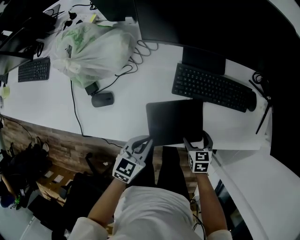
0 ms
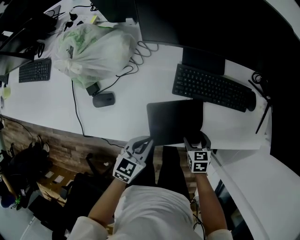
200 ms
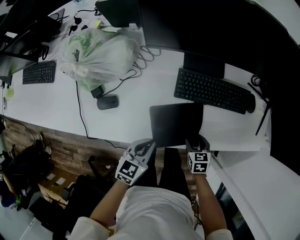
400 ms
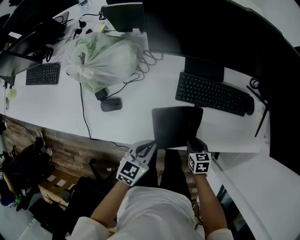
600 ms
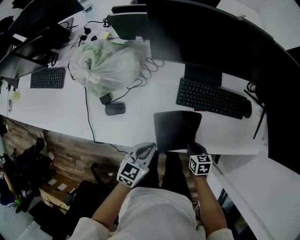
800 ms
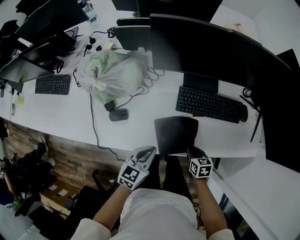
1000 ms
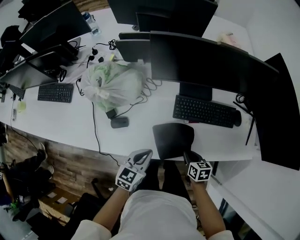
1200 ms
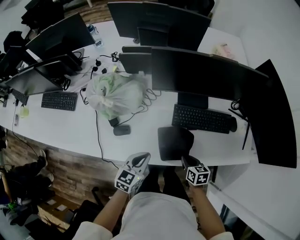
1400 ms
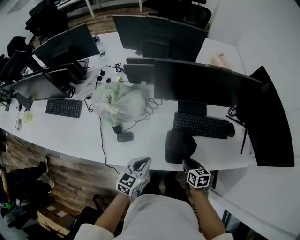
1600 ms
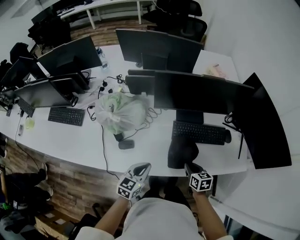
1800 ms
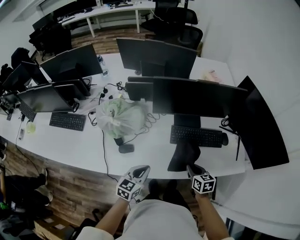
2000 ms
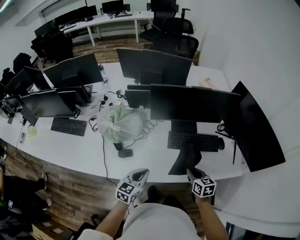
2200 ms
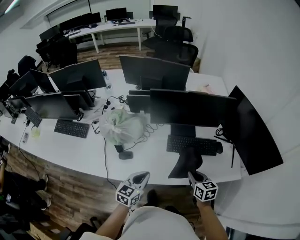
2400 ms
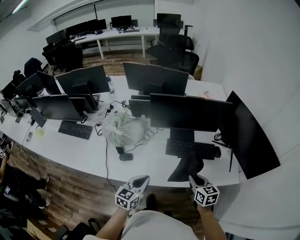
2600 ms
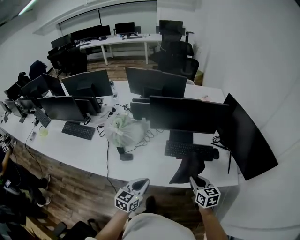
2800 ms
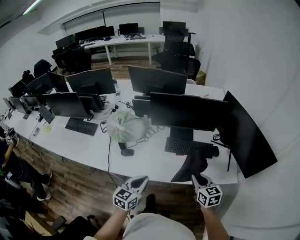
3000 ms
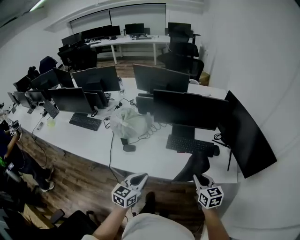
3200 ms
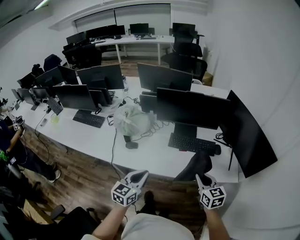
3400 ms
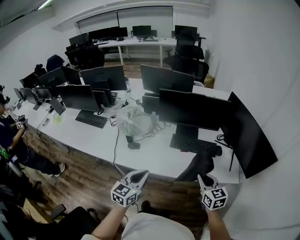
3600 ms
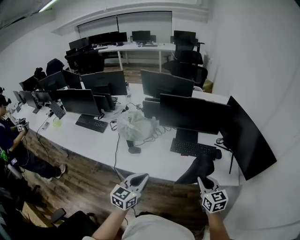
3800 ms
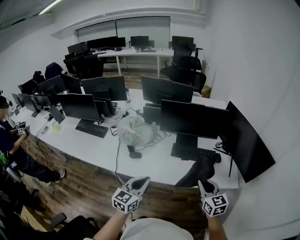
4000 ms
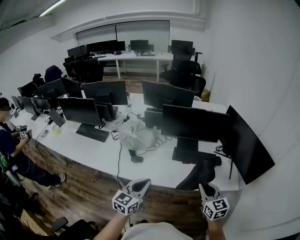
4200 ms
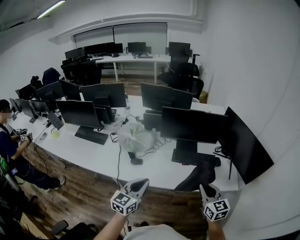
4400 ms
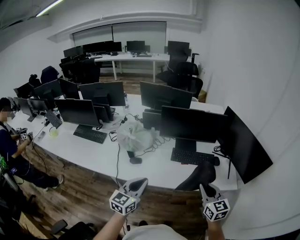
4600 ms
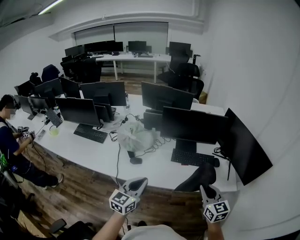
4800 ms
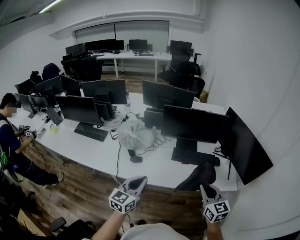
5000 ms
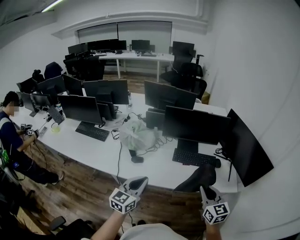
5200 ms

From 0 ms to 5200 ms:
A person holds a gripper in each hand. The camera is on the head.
From 0 ms to 1800 ms: The right gripper moves upward, about 20 cm, changes its angle by some 20 degrees, and closes its fingers; the left gripper is displaced upward and to the left by some 15 cm.
From 1800 ms to 3400 ms: The right gripper goes some 30 cm upward, backward and to the right, and changes its angle by roughly 30 degrees. Meanwhile the left gripper is displaced backward, upward and to the right by roughly 25 cm.
From 3400 ms to 5200 ms: The left gripper goes some 10 cm to the left and upward. The right gripper travels upward, to the left and backward by approximately 10 cm.

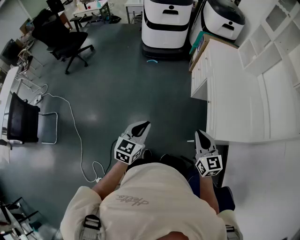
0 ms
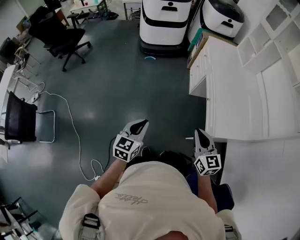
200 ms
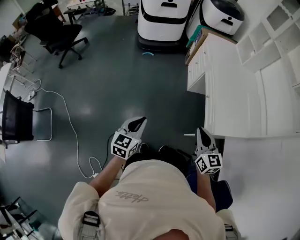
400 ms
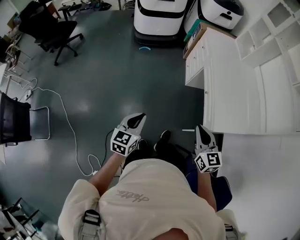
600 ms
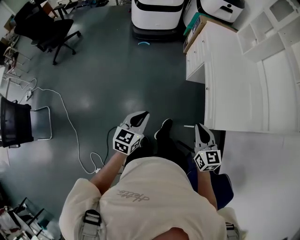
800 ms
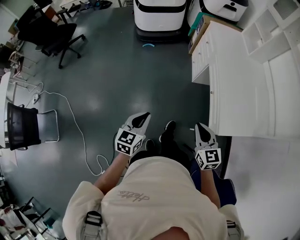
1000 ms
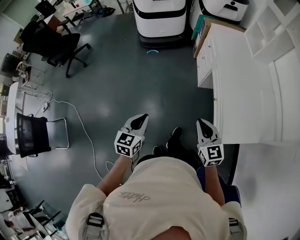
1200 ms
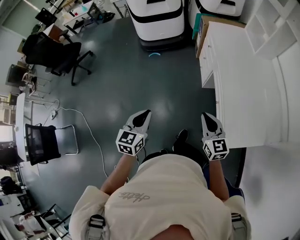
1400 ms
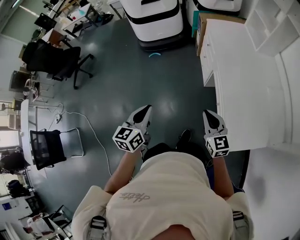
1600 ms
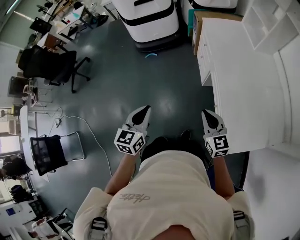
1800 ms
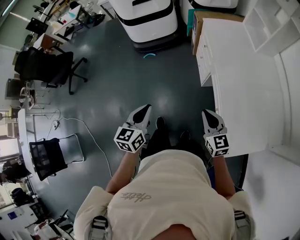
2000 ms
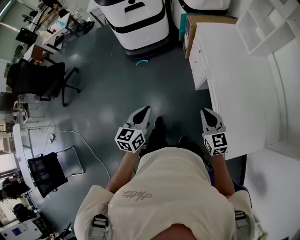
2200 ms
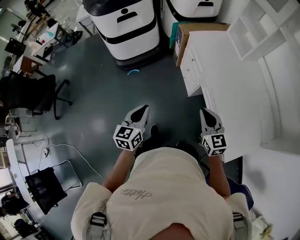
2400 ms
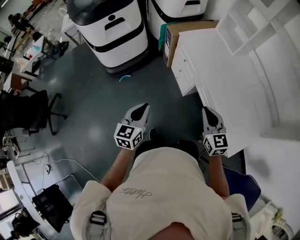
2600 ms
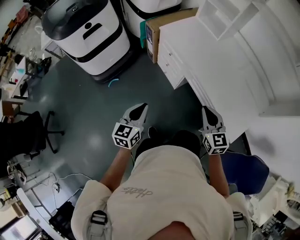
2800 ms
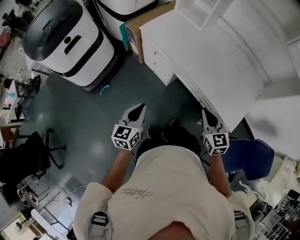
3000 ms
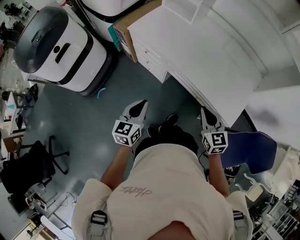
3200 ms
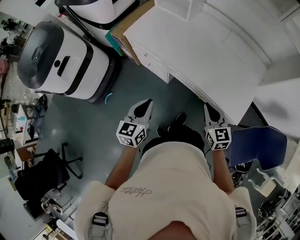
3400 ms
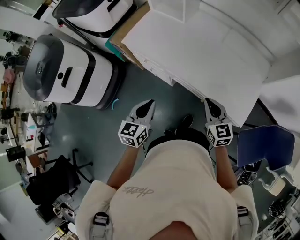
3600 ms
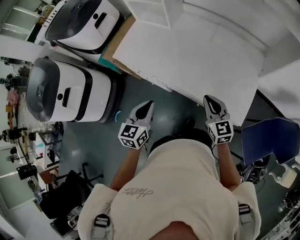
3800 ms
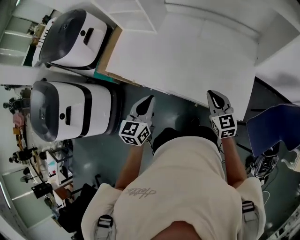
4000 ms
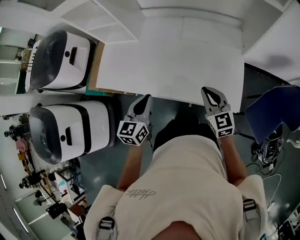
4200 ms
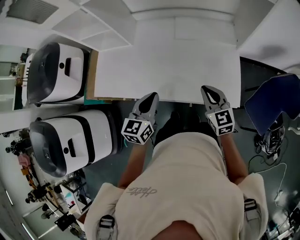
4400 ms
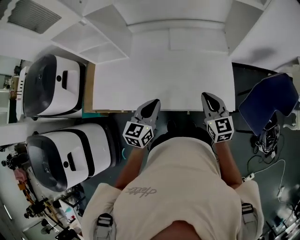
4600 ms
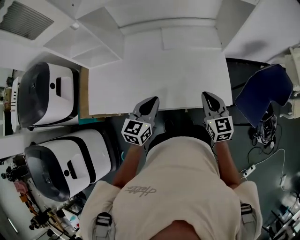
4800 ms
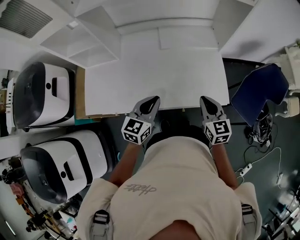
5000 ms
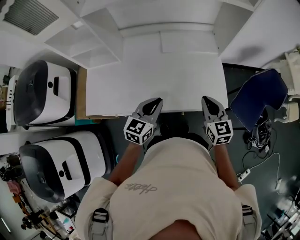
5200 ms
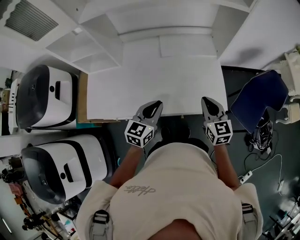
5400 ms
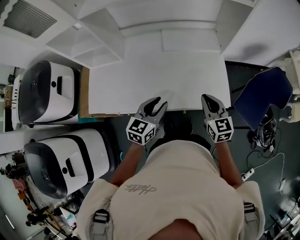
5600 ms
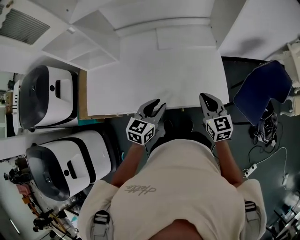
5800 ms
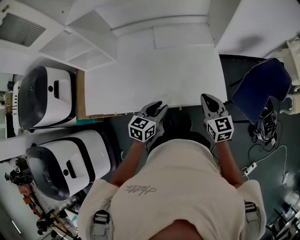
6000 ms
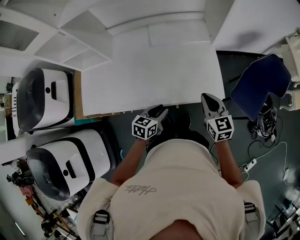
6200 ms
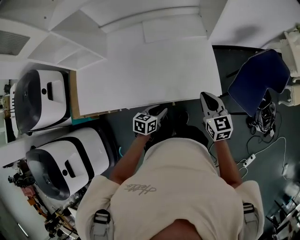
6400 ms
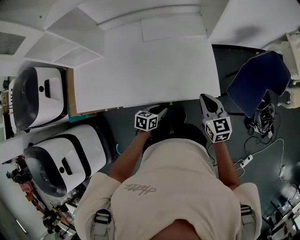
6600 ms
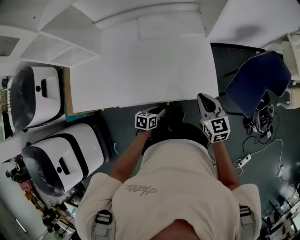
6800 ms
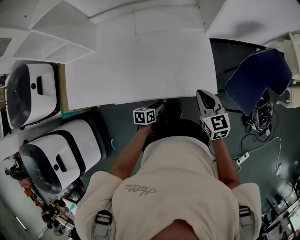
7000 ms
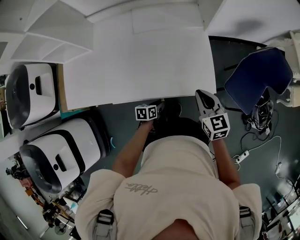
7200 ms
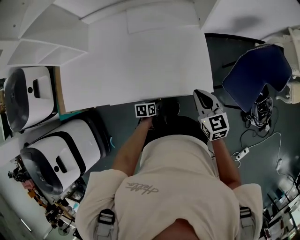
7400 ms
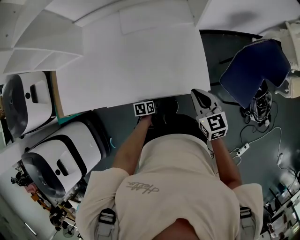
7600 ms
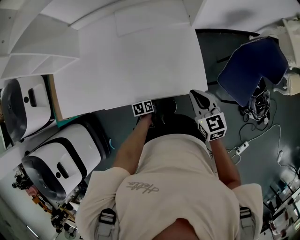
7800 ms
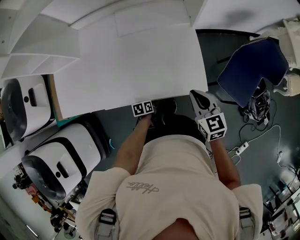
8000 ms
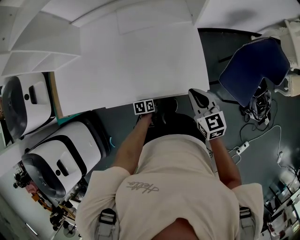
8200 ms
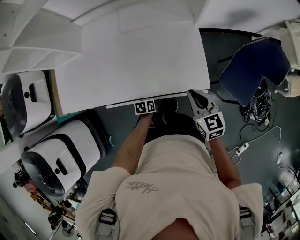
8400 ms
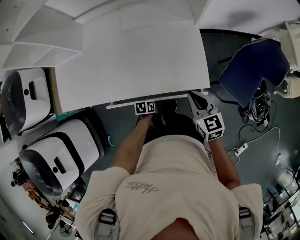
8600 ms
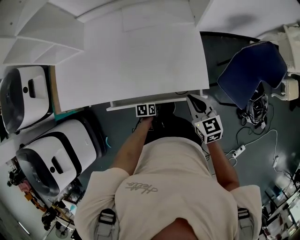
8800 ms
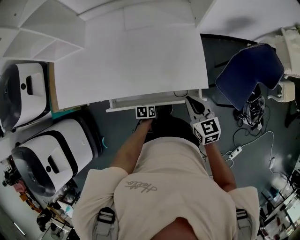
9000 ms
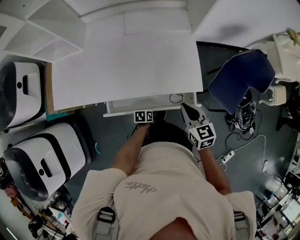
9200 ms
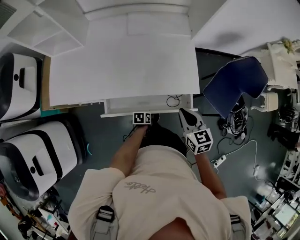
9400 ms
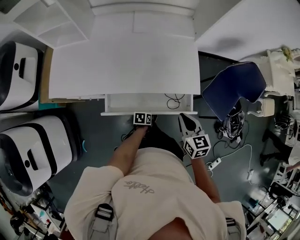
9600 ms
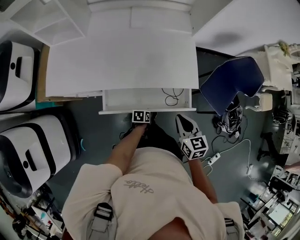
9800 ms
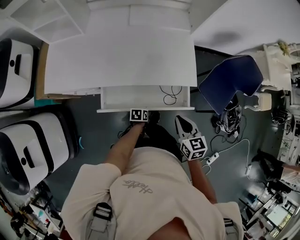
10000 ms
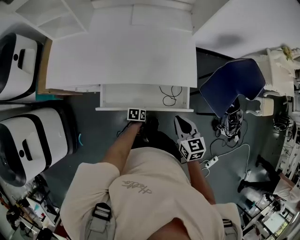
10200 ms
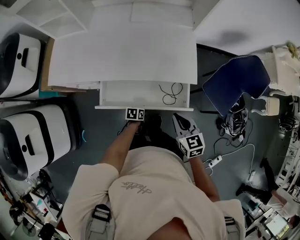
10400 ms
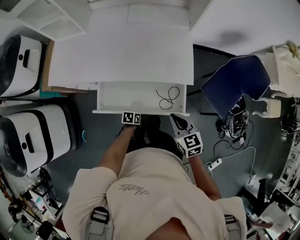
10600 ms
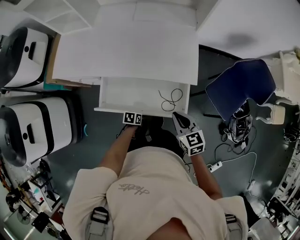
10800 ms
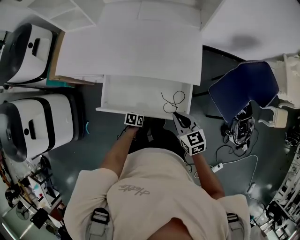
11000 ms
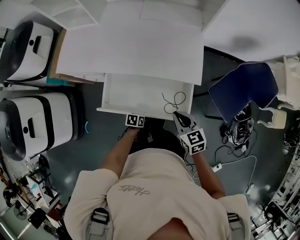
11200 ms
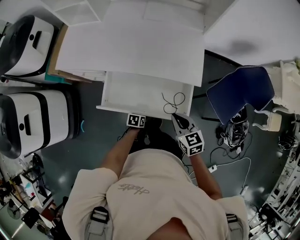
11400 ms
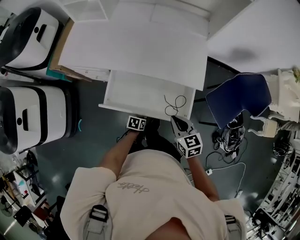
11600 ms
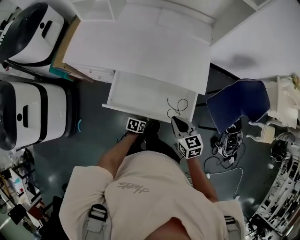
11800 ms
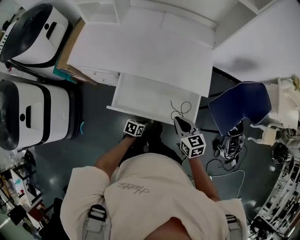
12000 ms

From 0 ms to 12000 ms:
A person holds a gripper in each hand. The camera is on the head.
From 0 ms to 1600 ms: Both grippers travel together forward, roughly 30 cm.
From 1600 ms to 3000 ms: The left gripper changes place by approximately 25 cm, and rotates roughly 40 degrees. The right gripper changes its angle by some 40 degrees.
From 3000 ms to 4400 ms: The left gripper moves some 35 cm, and swivels about 40 degrees. The right gripper moves approximately 25 cm, and turns by some 30 degrees.
From 4400 ms to 6000 ms: The left gripper moves downward and to the right, about 10 cm, swivels approximately 30 degrees, and opens up, while the right gripper travels to the right by roughly 5 cm.
From 6000 ms to 7600 ms: The left gripper shifts approximately 30 cm downward, and turns by about 40 degrees. The right gripper shifts approximately 10 cm to the right and downward.
From 7600 ms to 9000 ms: The grippers both shift backward by roughly 5 cm.
From 9000 ms to 10400 ms: The left gripper moves backward, some 10 cm, while the right gripper heads backward, covering some 15 cm.
From 10400 ms to 12000 ms: The left gripper moves backward and upward, about 10 cm. Meanwhile the right gripper changes place by approximately 5 cm.

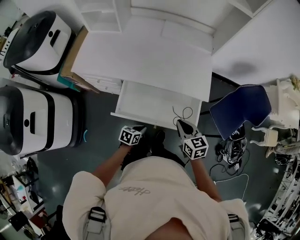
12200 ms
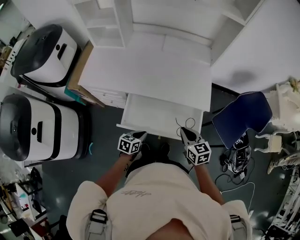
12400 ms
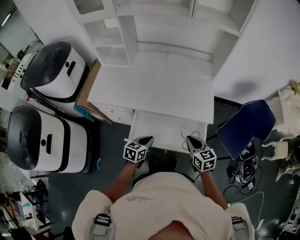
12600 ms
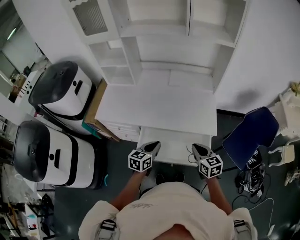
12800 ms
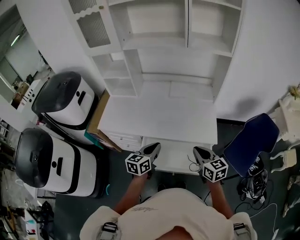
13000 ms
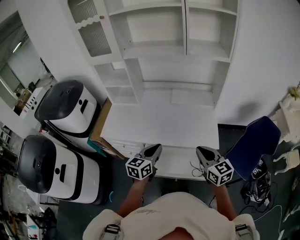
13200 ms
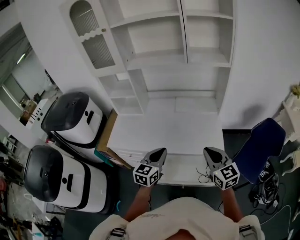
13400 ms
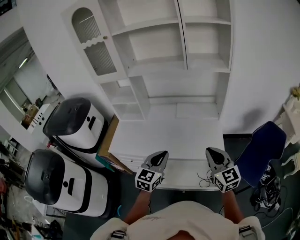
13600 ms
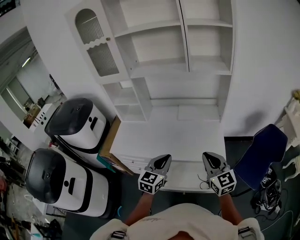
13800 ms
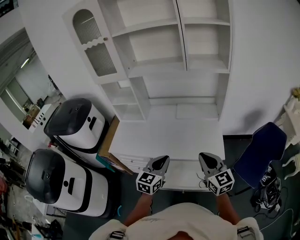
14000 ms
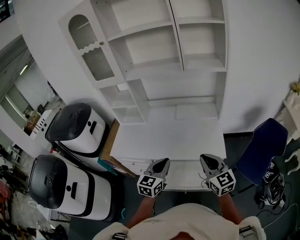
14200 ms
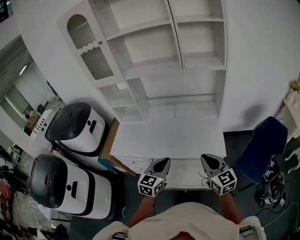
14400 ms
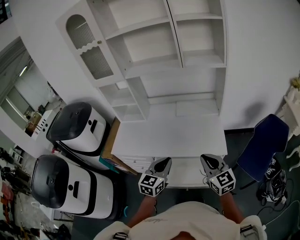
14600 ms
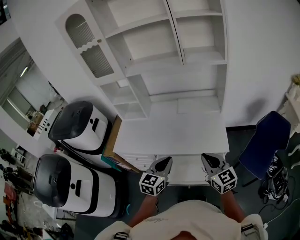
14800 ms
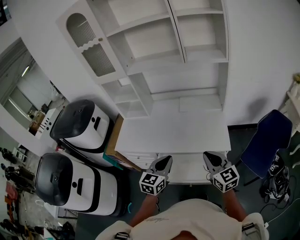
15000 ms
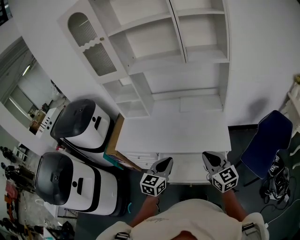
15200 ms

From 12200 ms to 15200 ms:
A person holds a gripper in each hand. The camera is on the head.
From 12200 ms to 13800 ms: The left gripper is displaced upward by about 40 cm, and points its fingers roughly 30 degrees further upward; the right gripper shifts some 25 cm upward, and swivels approximately 30 degrees.
From 13800 ms to 15200 ms: The left gripper ends up roughly 5 cm from where it was.

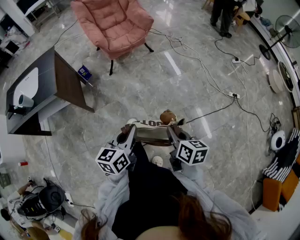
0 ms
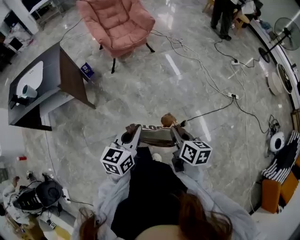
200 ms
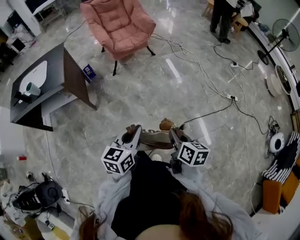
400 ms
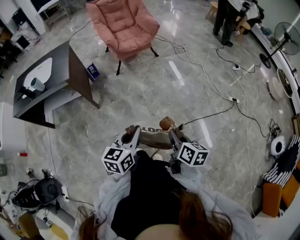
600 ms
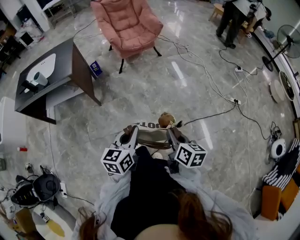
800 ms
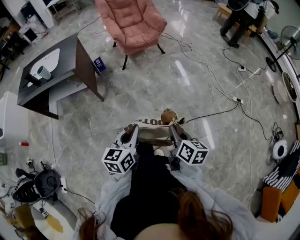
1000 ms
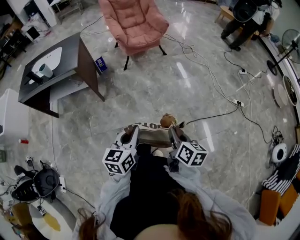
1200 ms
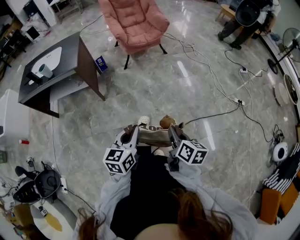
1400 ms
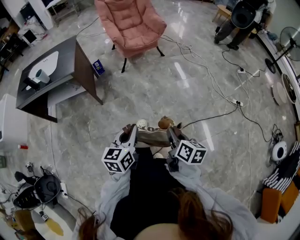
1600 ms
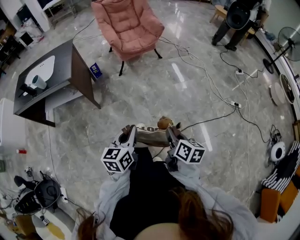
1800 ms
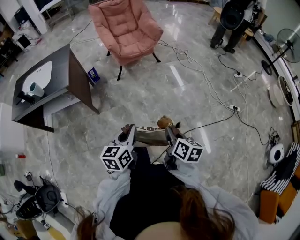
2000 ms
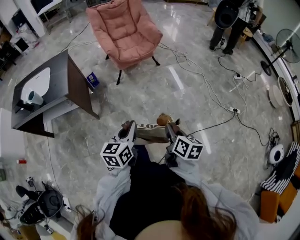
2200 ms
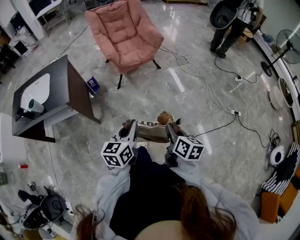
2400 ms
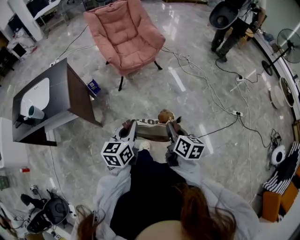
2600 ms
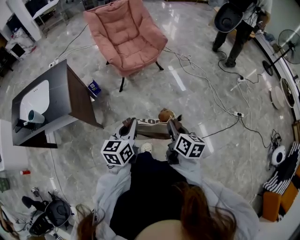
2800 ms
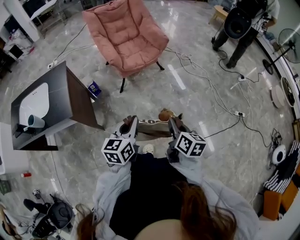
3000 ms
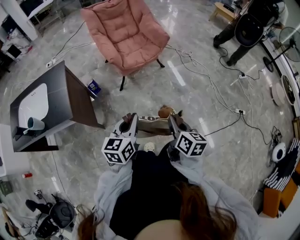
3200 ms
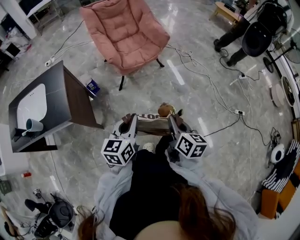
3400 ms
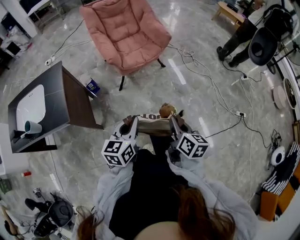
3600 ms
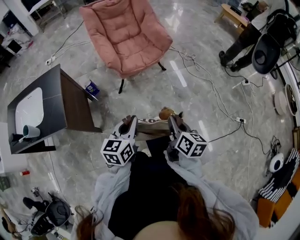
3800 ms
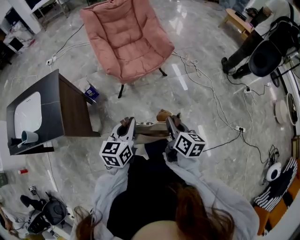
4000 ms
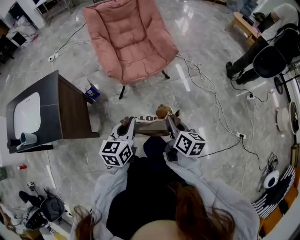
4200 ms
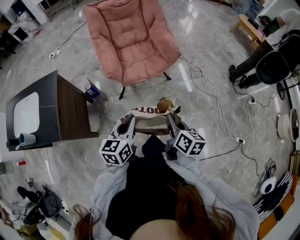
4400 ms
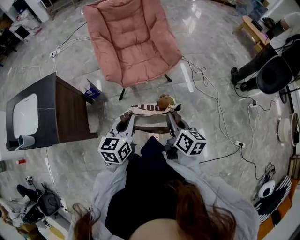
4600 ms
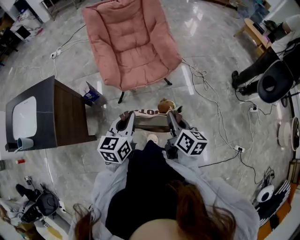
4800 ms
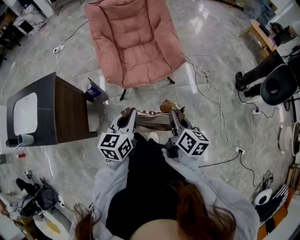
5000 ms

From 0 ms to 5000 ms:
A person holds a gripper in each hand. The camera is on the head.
From 0 ms to 1600 ms: The grippers both shift backward by about 10 cm.
From 1600 ms to 3400 ms: Both grippers move forward, about 35 cm.
From 3400 ms to 5000 ms: The grippers both shift forward by about 30 cm.
